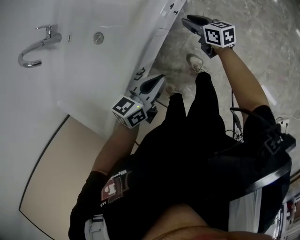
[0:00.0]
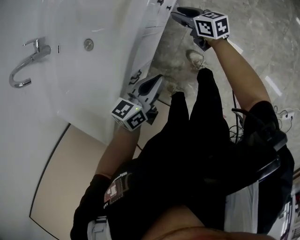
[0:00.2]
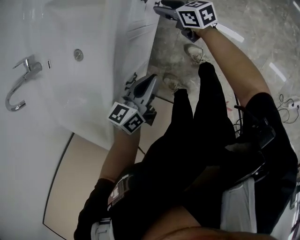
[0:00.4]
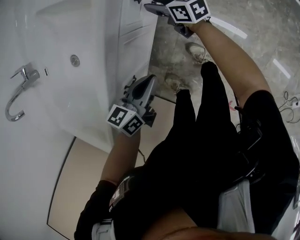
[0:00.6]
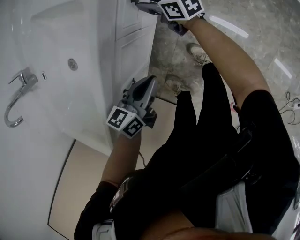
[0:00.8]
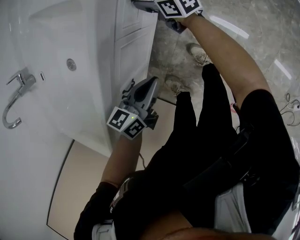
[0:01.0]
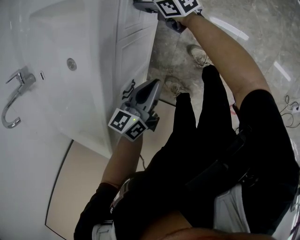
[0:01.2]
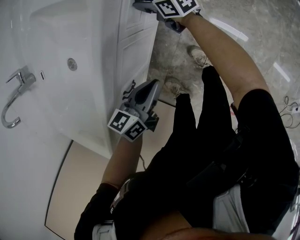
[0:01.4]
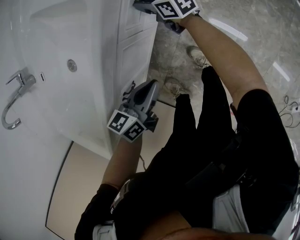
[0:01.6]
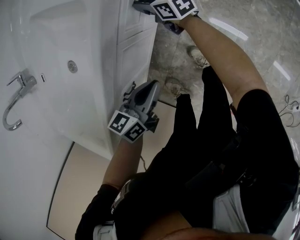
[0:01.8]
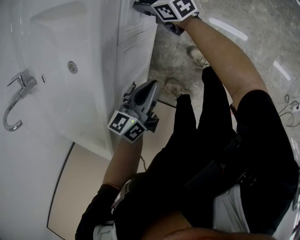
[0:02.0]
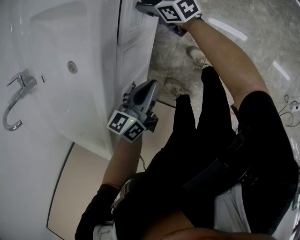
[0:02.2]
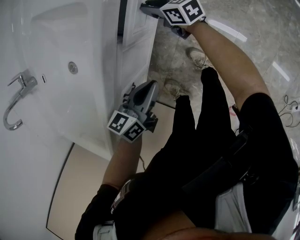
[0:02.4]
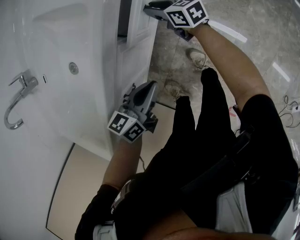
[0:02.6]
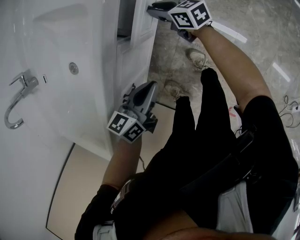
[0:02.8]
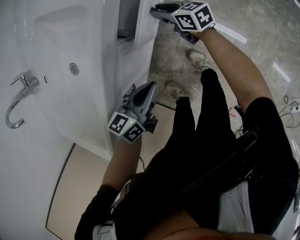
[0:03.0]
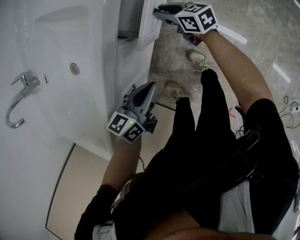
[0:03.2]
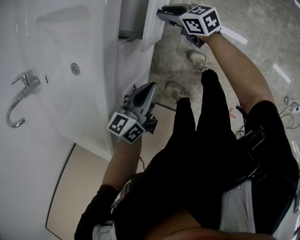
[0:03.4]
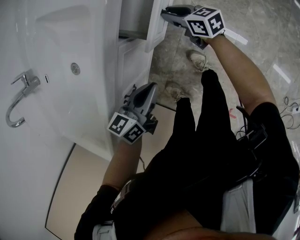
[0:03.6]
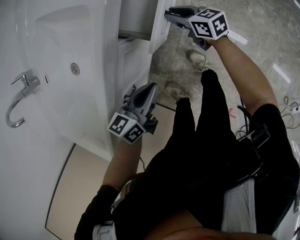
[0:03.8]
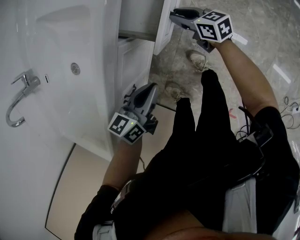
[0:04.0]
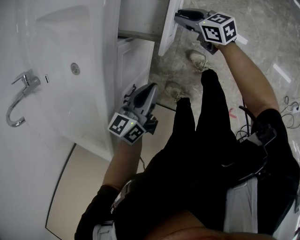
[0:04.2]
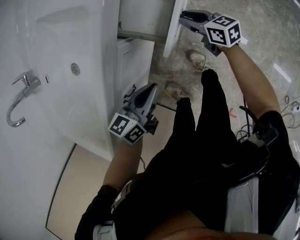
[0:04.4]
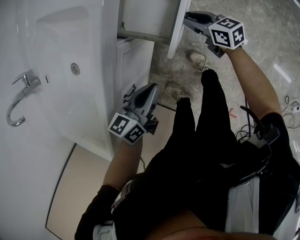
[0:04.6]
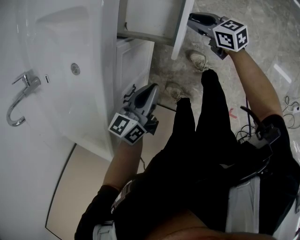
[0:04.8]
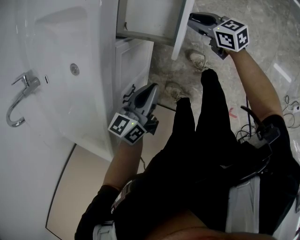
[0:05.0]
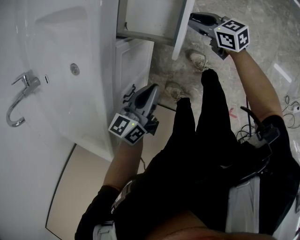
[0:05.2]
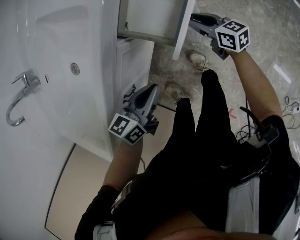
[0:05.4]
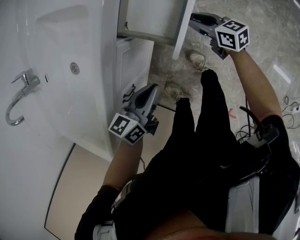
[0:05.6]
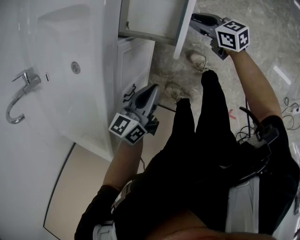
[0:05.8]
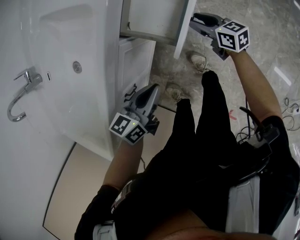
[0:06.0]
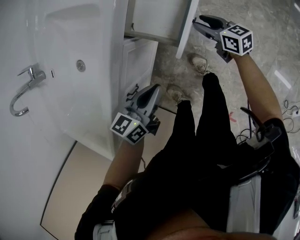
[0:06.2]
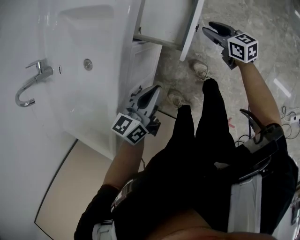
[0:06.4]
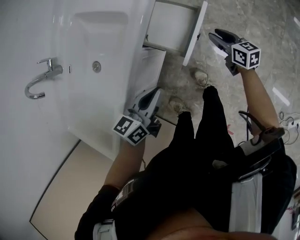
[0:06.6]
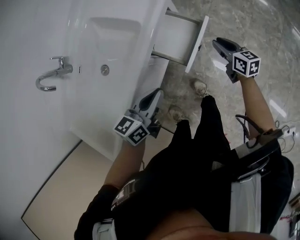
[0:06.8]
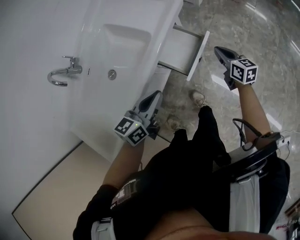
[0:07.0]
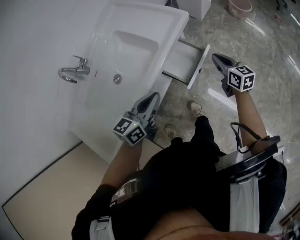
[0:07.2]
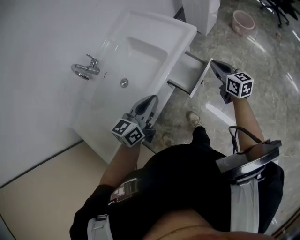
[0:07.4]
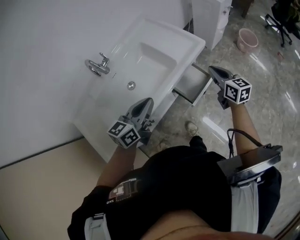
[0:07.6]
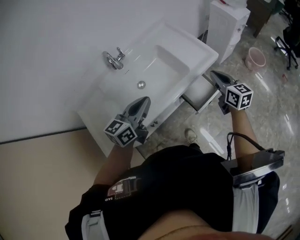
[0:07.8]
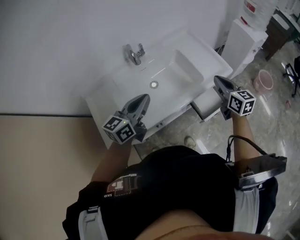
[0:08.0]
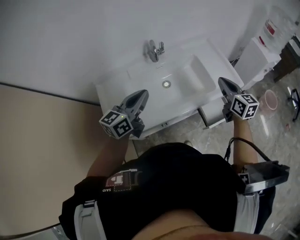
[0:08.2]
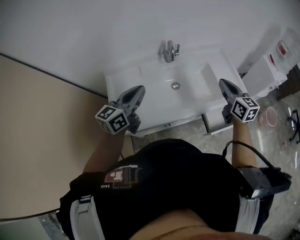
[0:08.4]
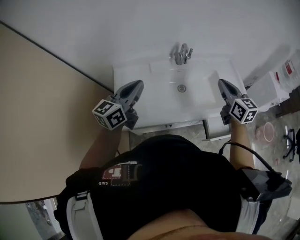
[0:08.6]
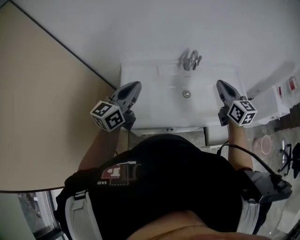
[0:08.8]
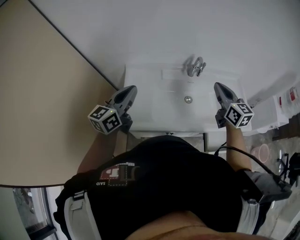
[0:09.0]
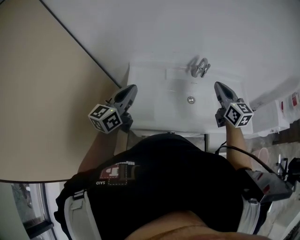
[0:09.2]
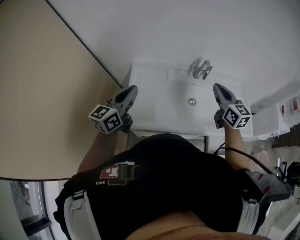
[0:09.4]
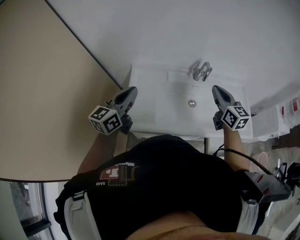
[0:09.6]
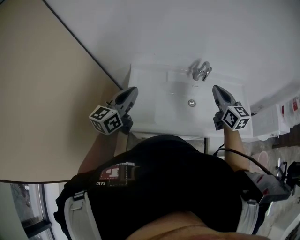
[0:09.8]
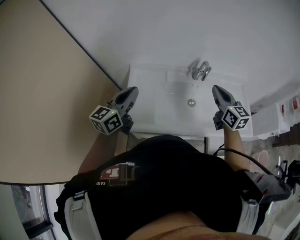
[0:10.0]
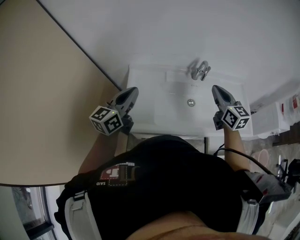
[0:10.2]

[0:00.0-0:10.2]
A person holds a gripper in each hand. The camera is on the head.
0:00.0 to 0:01.4: The right gripper heads downward, forward and to the left, covering roughly 15 cm. The left gripper shifts roughly 15 cm downward.
0:01.4 to 0:03.0: The right gripper moves some 5 cm.
0:03.0 to 0:04.4: The right gripper shifts some 10 cm to the right and backward.
0:04.4 to 0:05.8: There are only small adjustments of the grippers.
0:05.8 to 0:07.2: The two grippers go some 30 cm upward. The right gripper closes its fingers. Meanwhile the left gripper turns by approximately 20 degrees.
0:07.2 to 0:08.8: The pair of grippers is taken about 50 cm. The right gripper swivels some 50 degrees, while the left gripper rotates approximately 60 degrees.
0:08.8 to 0:10.2: Both grippers move to the left, some 5 cm.

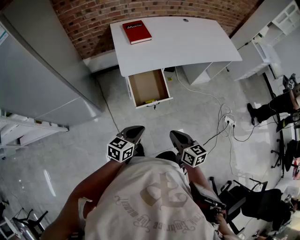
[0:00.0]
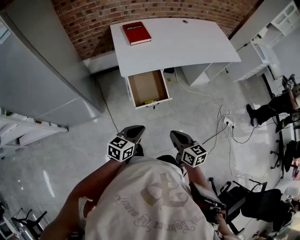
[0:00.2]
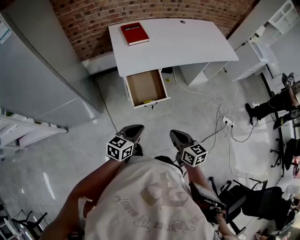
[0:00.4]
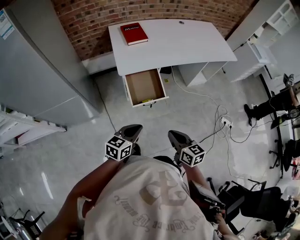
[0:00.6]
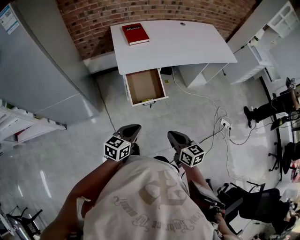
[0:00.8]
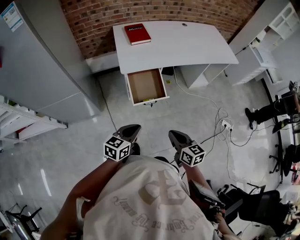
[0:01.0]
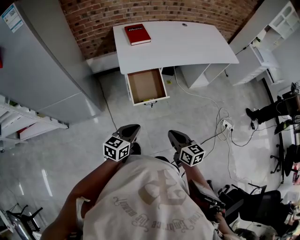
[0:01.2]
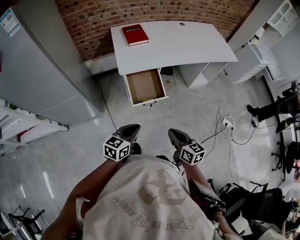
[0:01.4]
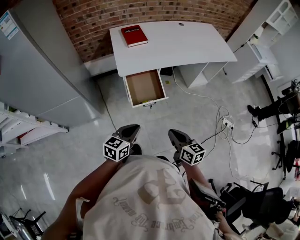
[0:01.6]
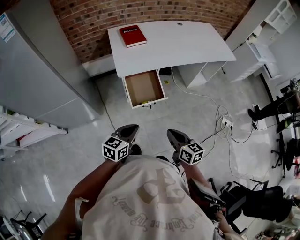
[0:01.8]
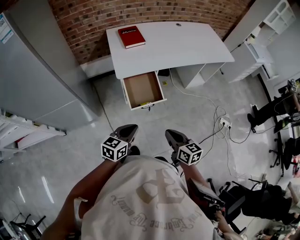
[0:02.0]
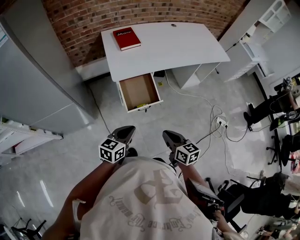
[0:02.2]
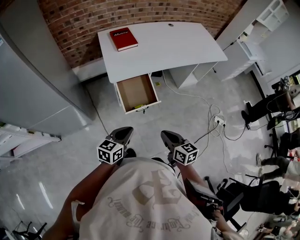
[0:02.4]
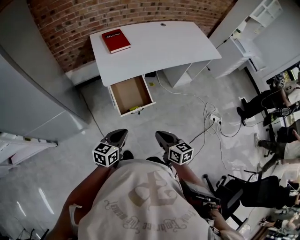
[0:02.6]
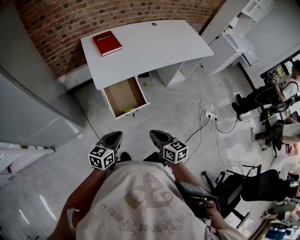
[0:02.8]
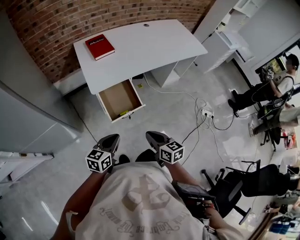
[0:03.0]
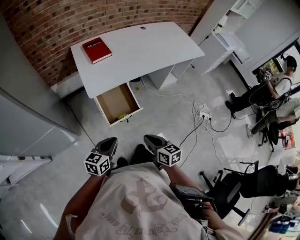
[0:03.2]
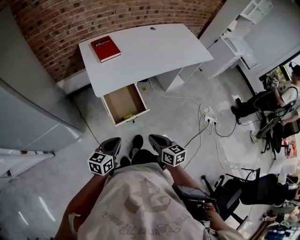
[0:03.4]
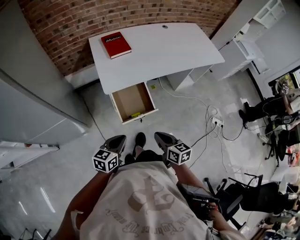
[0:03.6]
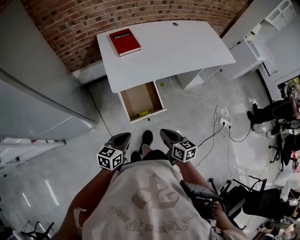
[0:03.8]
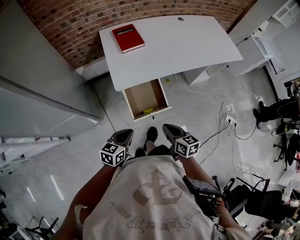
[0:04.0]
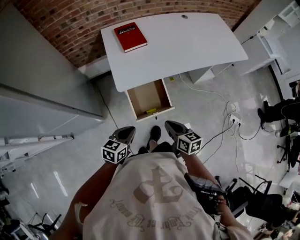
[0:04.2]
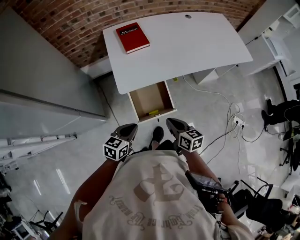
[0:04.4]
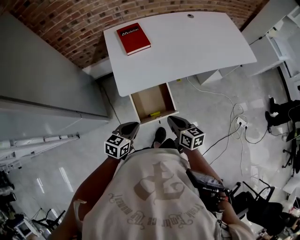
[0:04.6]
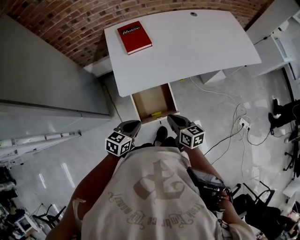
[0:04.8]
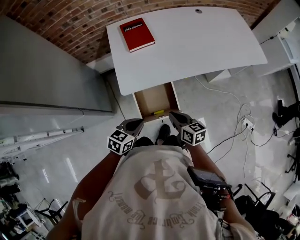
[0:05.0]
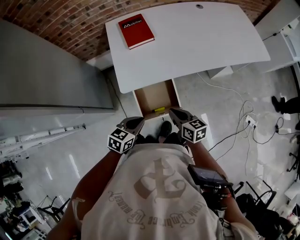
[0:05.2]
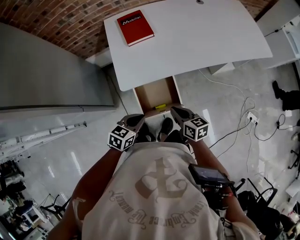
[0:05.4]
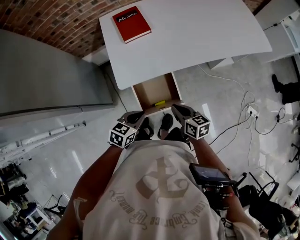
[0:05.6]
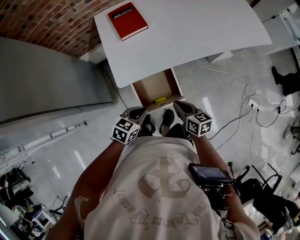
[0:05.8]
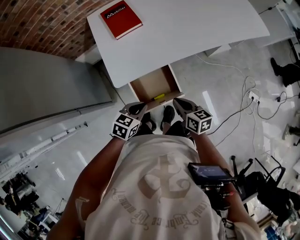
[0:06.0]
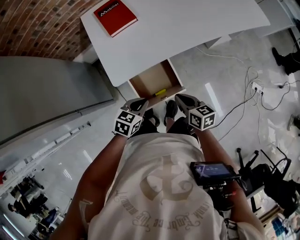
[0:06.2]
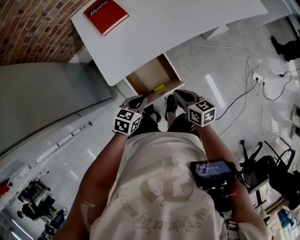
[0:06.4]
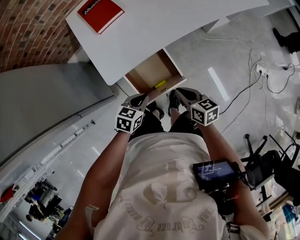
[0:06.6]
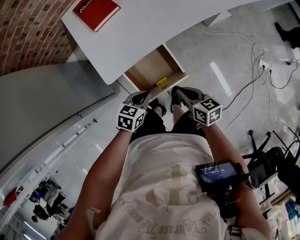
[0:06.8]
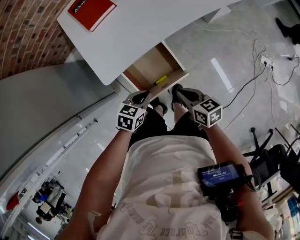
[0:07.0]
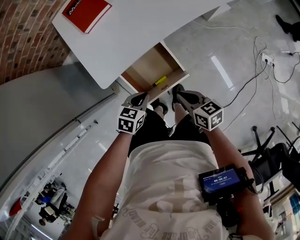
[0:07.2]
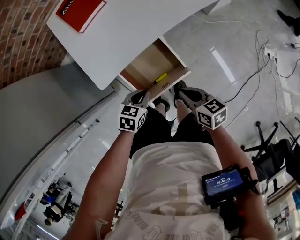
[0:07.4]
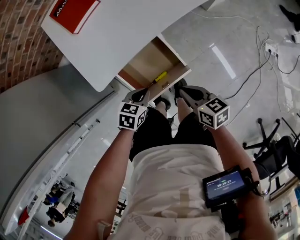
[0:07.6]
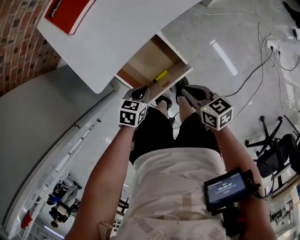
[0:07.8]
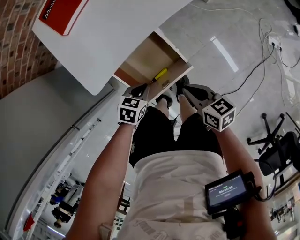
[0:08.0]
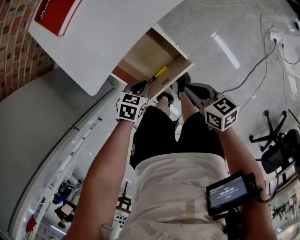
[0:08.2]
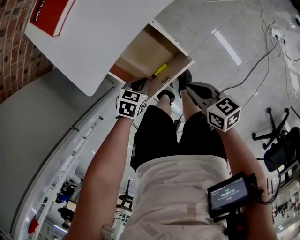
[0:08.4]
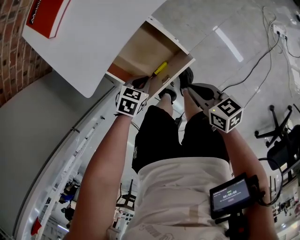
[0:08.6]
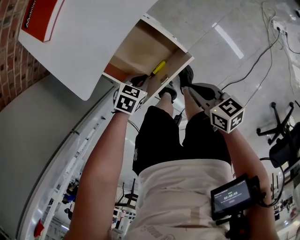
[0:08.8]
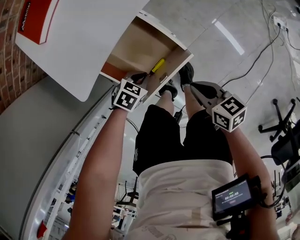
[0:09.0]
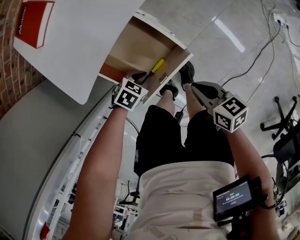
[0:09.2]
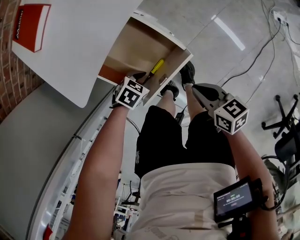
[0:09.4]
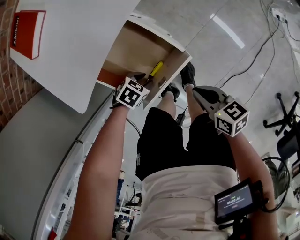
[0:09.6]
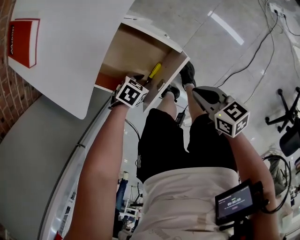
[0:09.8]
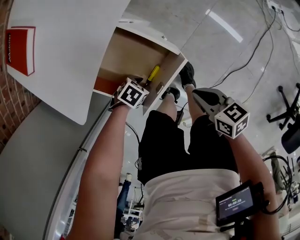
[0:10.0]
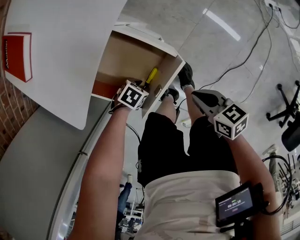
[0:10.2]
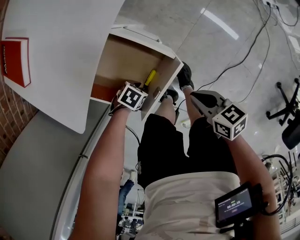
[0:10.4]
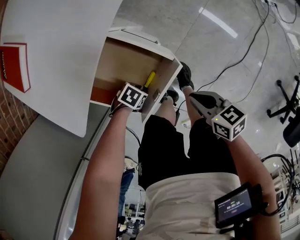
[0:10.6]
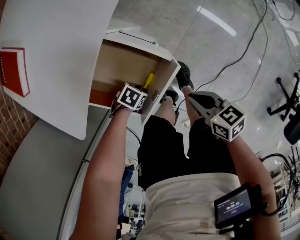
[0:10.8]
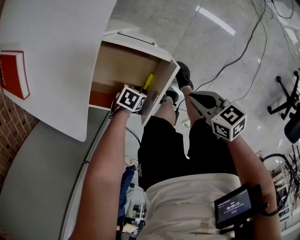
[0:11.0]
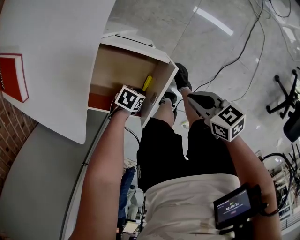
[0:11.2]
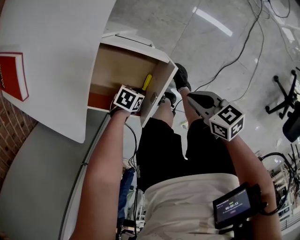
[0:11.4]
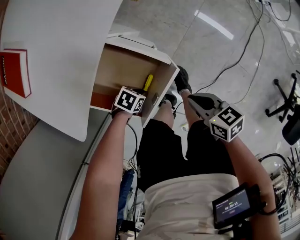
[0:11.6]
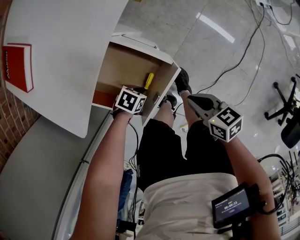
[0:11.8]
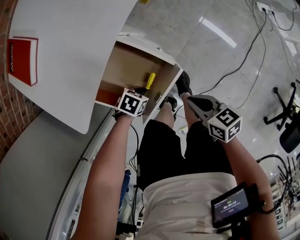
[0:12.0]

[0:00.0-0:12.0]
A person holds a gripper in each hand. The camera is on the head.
0:00.0 to 0:01.6: There are only small adjustments of the grippers.
0:01.6 to 0:03.0: Both grippers move forward, roughly 5 cm.
0:03.0 to 0:04.4: Both grippers move forward, about 15 cm.
0:04.4 to 0:06.0: The grippers both shift forward and downward by approximately 10 cm.
0:06.0 to 0:07.6: The grippers both shift downward by about 15 cm.
0:07.6 to 0:09.0: The left gripper travels downward by about 10 cm, and changes its angle by approximately 30 degrees, while the right gripper travels downward by roughly 5 cm.
0:09.0 to 0:10.4: The left gripper is displaced downward by some 10 cm, turns by about 20 degrees, and opens up.
0:10.4 to 0:12.0: The left gripper closes up.

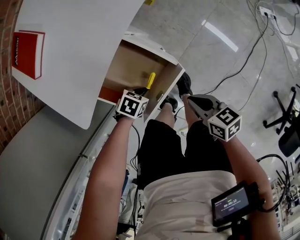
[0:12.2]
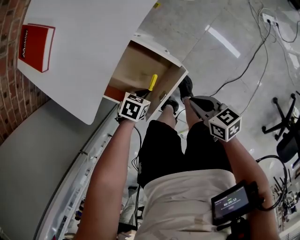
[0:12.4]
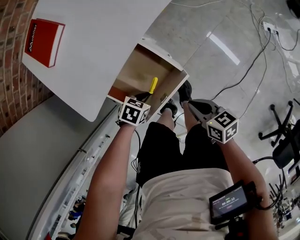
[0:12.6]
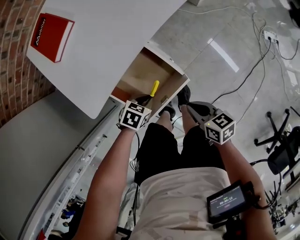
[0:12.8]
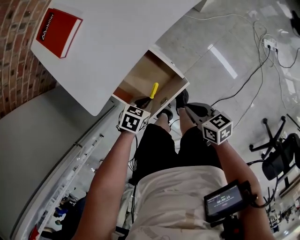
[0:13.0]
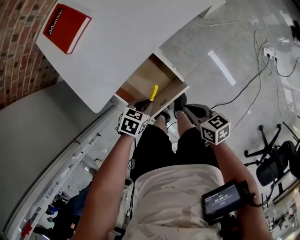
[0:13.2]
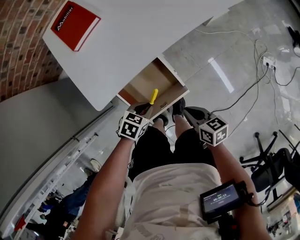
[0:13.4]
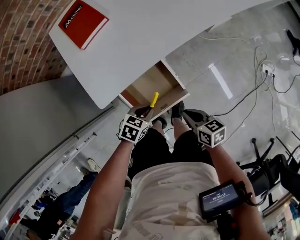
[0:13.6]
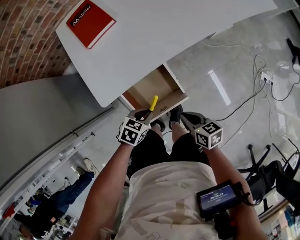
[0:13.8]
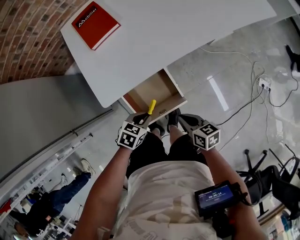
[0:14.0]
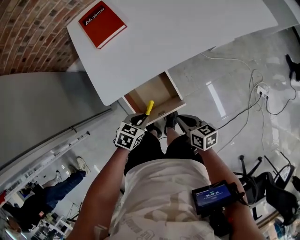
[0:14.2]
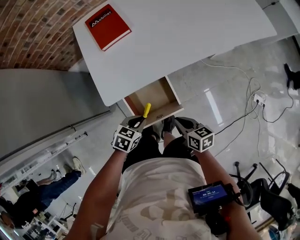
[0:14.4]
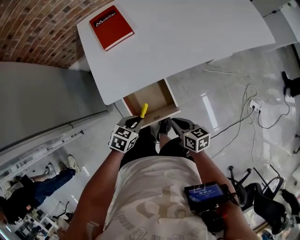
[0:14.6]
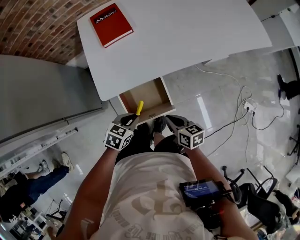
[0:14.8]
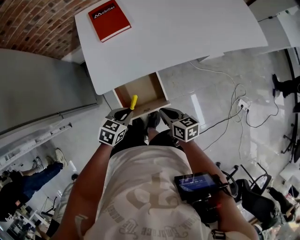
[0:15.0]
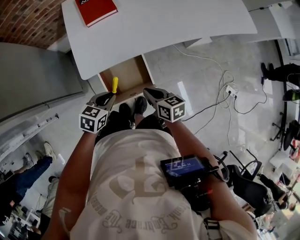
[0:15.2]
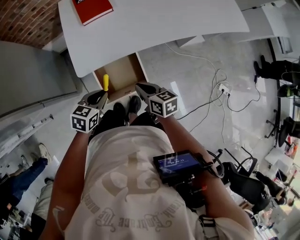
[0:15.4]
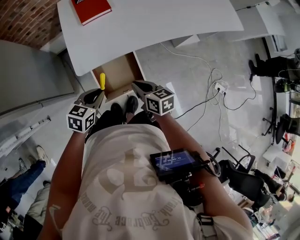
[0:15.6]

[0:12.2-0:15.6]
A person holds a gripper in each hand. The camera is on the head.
0:12.2 to 0:13.8: The right gripper moves upward, roughly 10 cm; the left gripper travels upward by roughly 20 cm, and turns by roughly 30 degrees.
0:13.8 to 0:15.6: The right gripper travels upward and to the left by roughly 15 cm, while the left gripper moves upward, some 15 cm, and turns by some 30 degrees.
